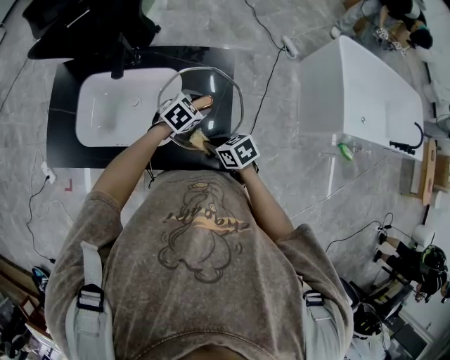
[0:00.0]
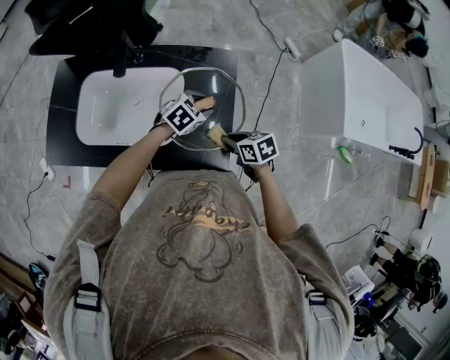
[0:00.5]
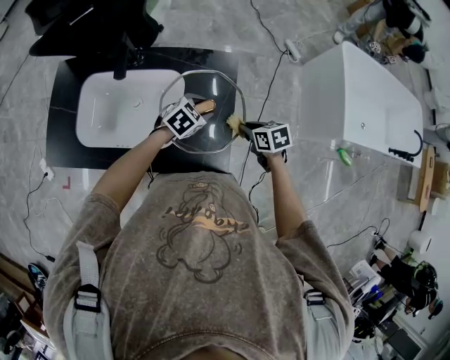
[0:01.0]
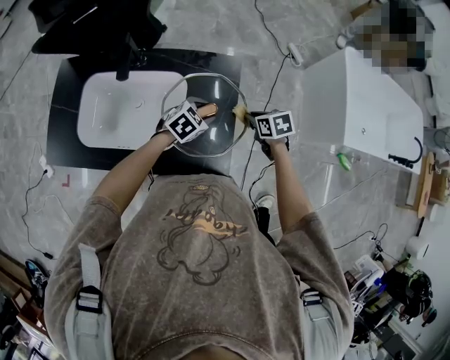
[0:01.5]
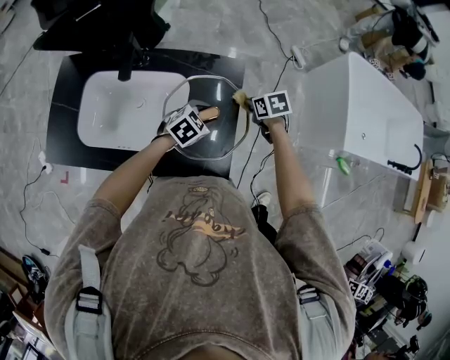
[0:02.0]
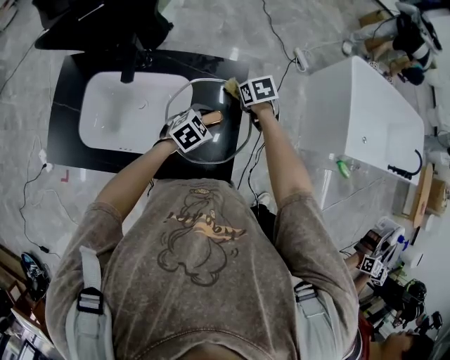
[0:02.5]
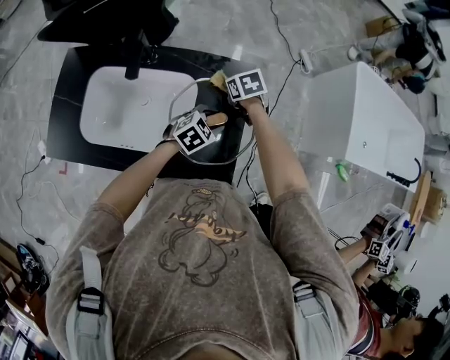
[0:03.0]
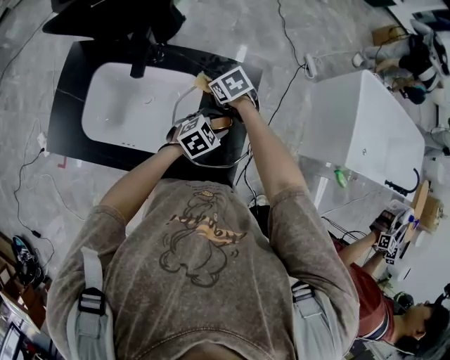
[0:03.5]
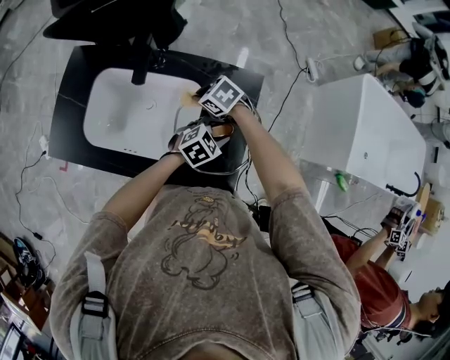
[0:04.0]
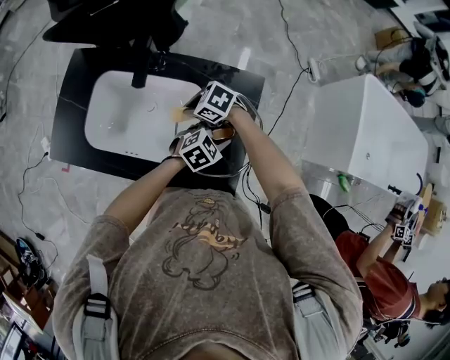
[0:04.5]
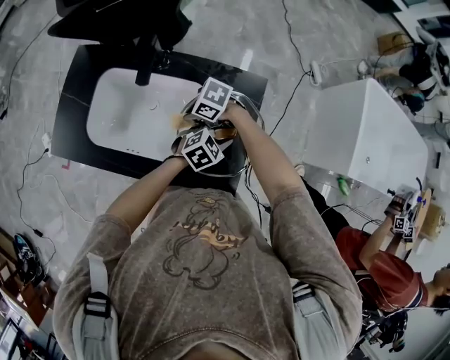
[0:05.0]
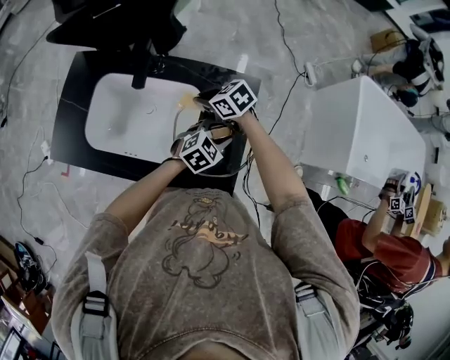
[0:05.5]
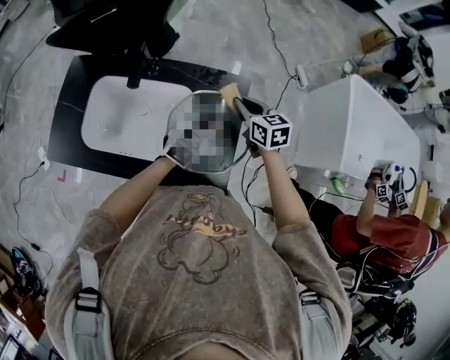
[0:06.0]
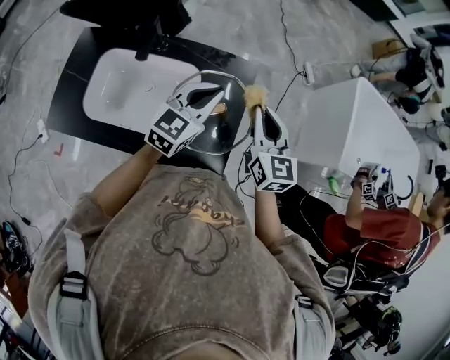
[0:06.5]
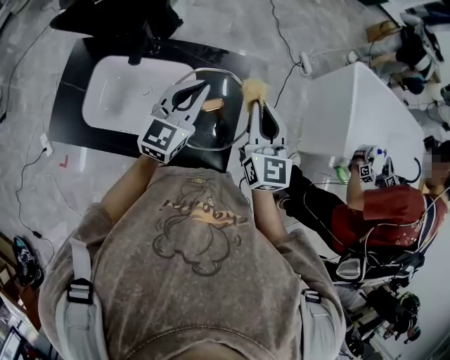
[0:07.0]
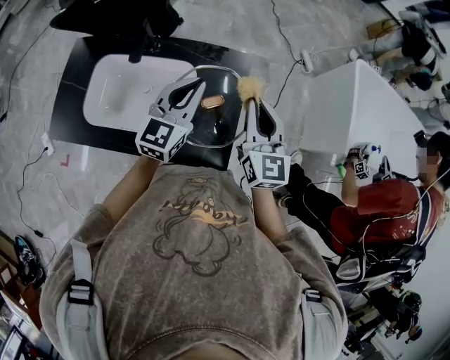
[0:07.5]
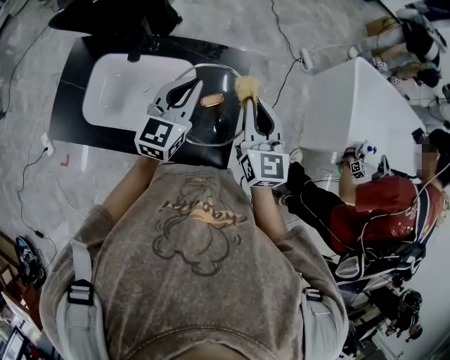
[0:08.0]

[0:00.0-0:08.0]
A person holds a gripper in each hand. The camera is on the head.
0:00.0 to 0:02.0: The right gripper ends up some 25 cm from where it was.
0:02.0 to 0:04.0: The right gripper changes place by roughly 25 cm, and turns by roughly 40 degrees.
0:04.0 to 0:06.0: The right gripper changes place by some 20 cm, and changes its angle by roughly 50 degrees. The left gripper heads upward, covering roughly 10 cm, rotates about 20 degrees, and closes its fingers.
0:06.0 to 0:08.0: The left gripper moves upward and to the left, about 15 cm, and changes its angle by approximately 30 degrees. Meanwhile the right gripper shifts roughly 20 cm backward and upward, and turns by some 40 degrees.

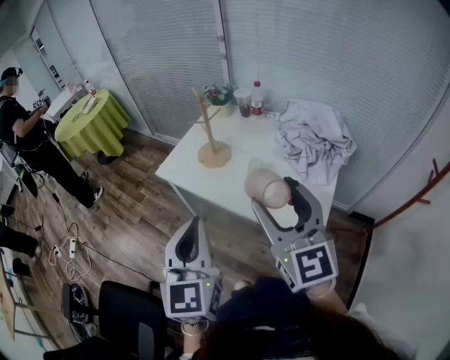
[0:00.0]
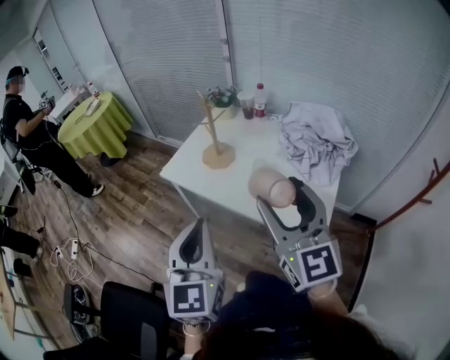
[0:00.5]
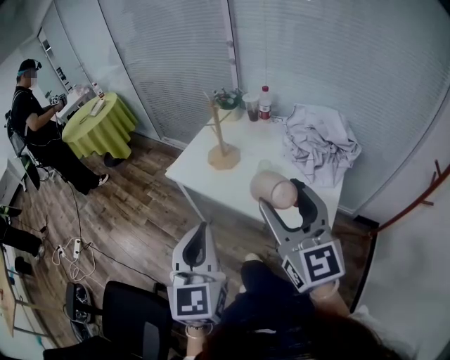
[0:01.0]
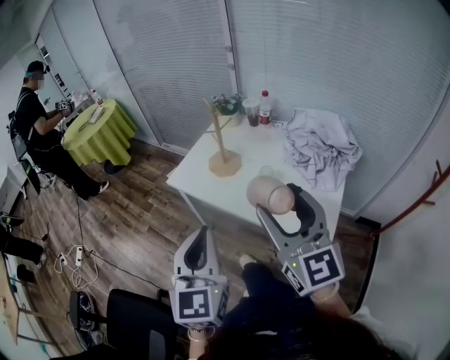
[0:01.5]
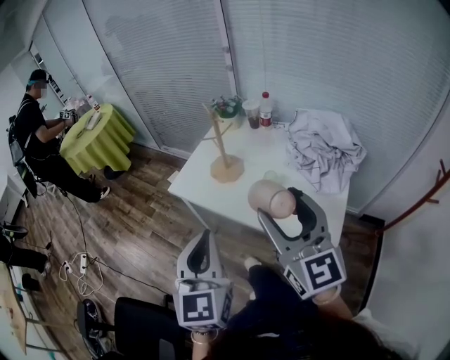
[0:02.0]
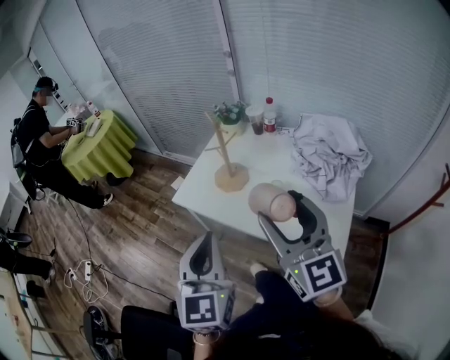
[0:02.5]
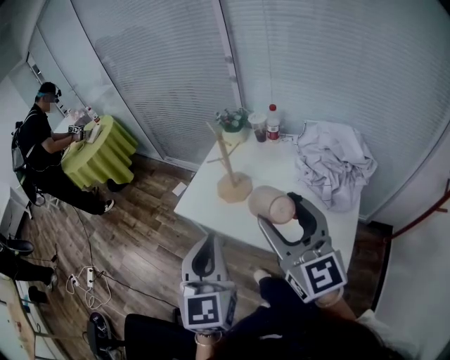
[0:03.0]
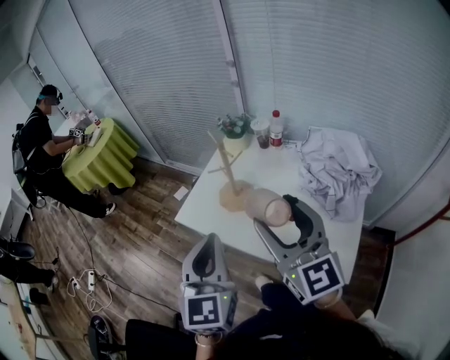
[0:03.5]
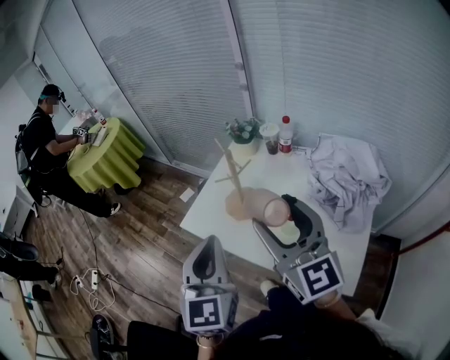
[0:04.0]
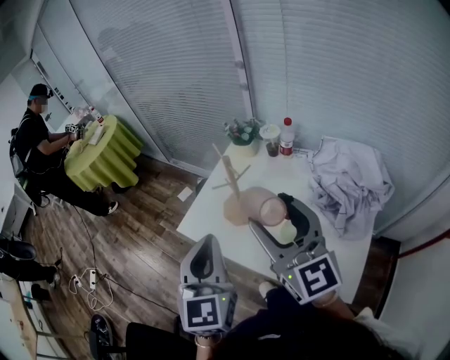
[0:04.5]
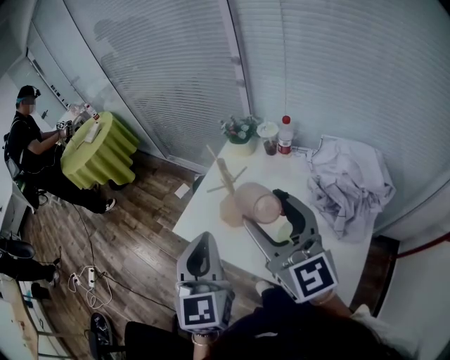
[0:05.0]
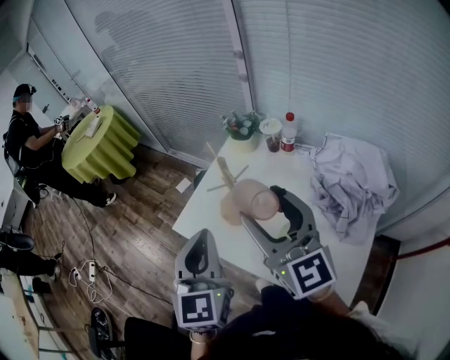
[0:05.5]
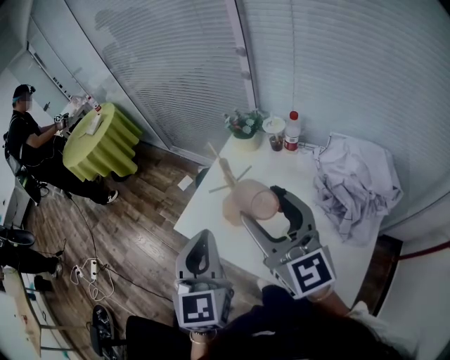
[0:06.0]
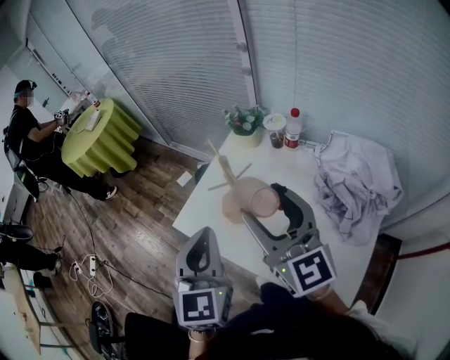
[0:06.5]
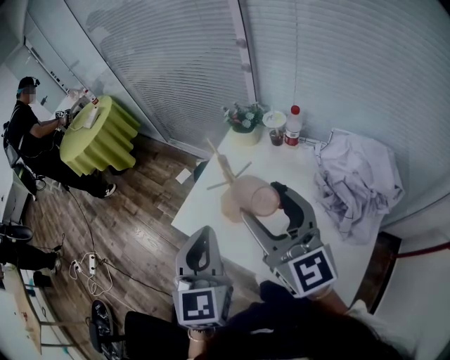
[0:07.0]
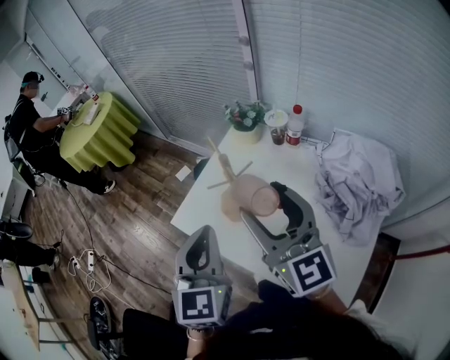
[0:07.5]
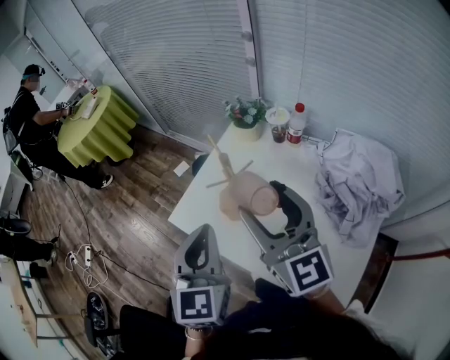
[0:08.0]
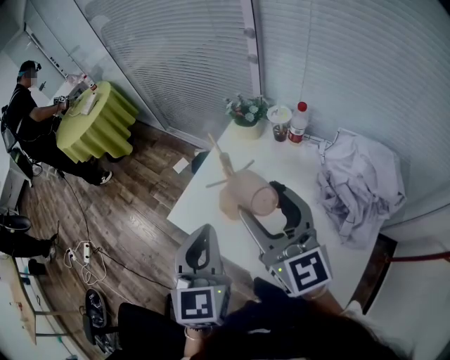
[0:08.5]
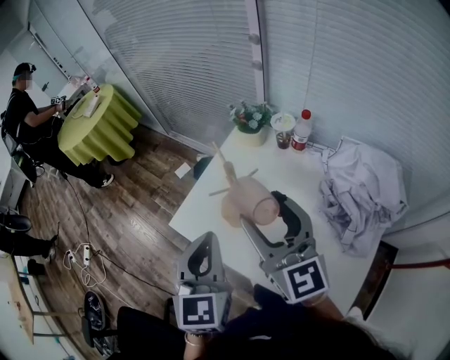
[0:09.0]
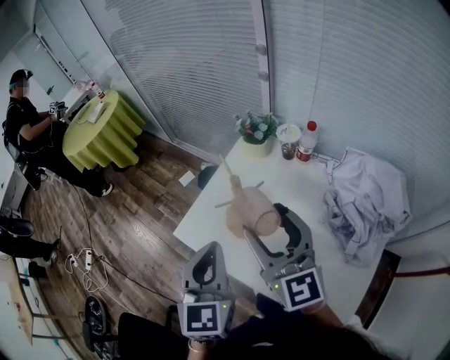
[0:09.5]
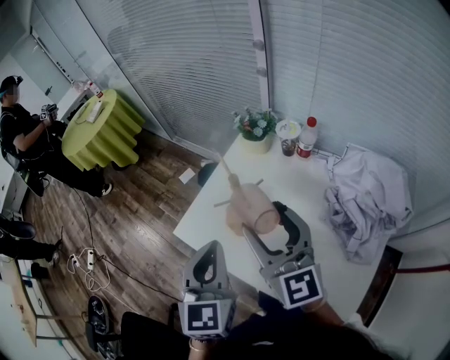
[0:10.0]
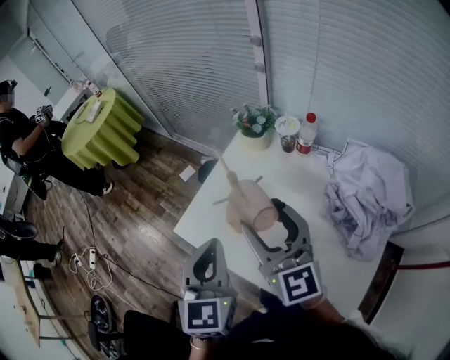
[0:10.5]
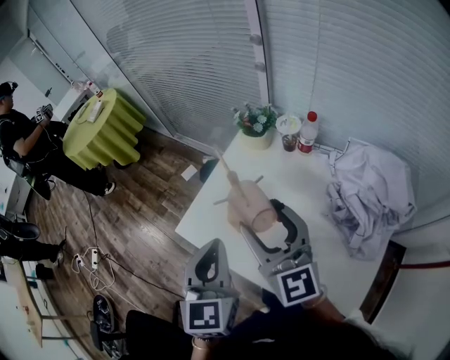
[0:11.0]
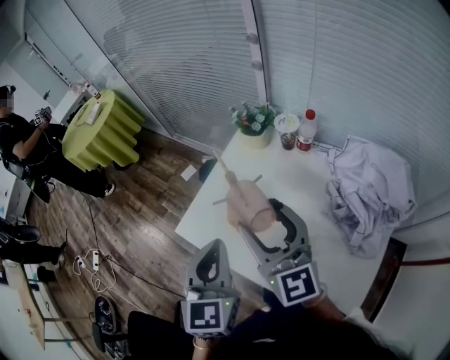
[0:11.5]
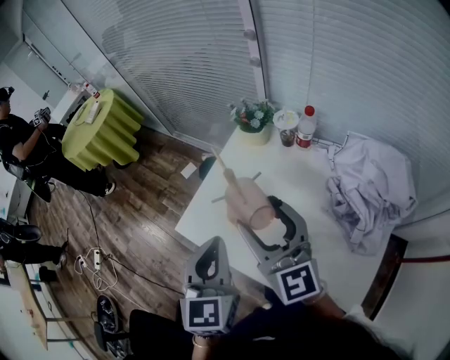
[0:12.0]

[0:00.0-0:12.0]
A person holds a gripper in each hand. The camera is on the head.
0:00.0 to 0:02.0: There are only small adjustments of the grippers.
0:02.0 to 0:04.0: Both grippers travel together forward, roughly 15 cm.
0:04.0 to 0:06.0: The two grippers go some 10 cm forward.
0:06.0 to 0:08.0: The grippers move only a little.
0:08.0 to 0:10.0: The grippers stay close to where they were, moving slightly.
0:10.0 to 0:12.0: Both grippers stay put.

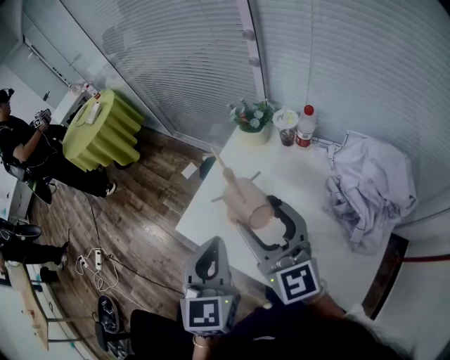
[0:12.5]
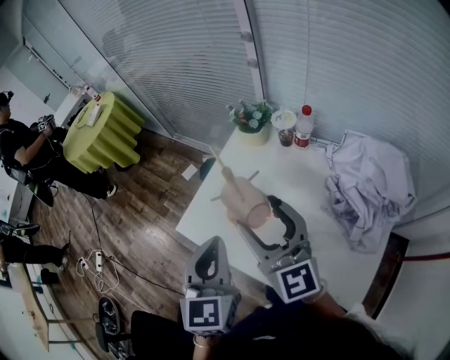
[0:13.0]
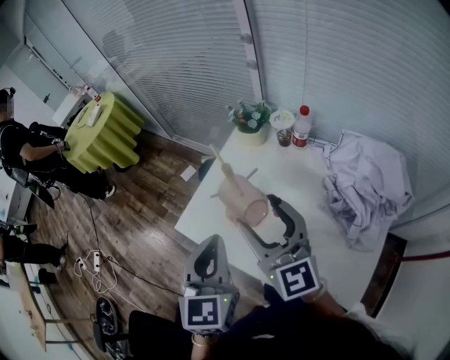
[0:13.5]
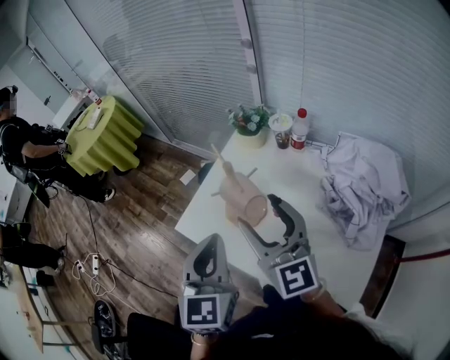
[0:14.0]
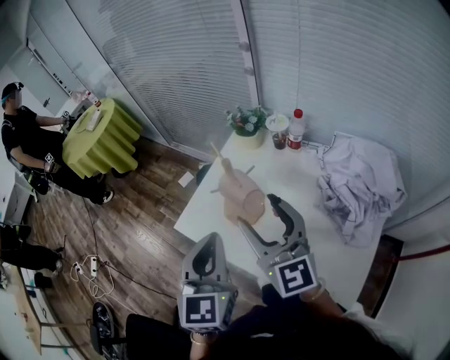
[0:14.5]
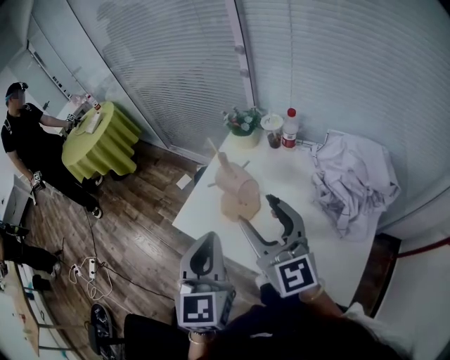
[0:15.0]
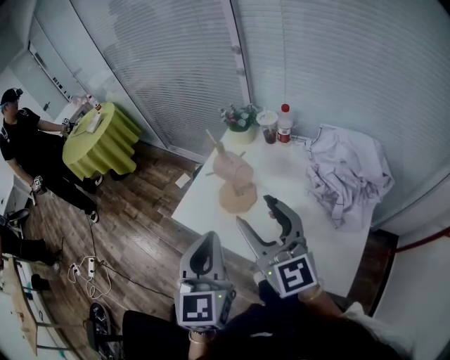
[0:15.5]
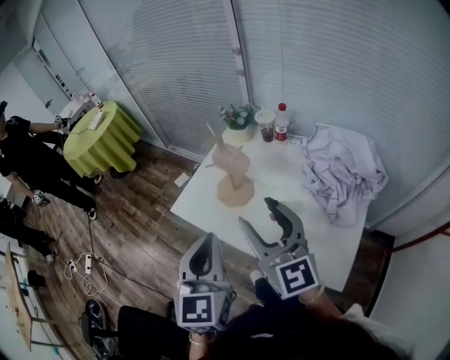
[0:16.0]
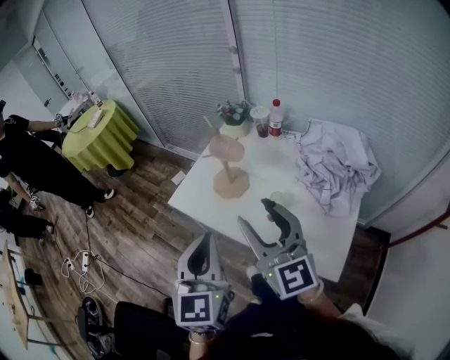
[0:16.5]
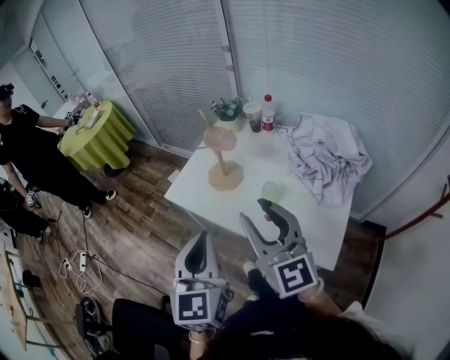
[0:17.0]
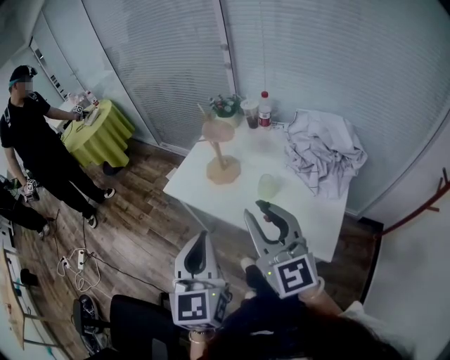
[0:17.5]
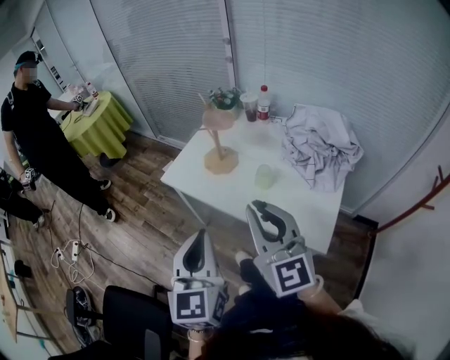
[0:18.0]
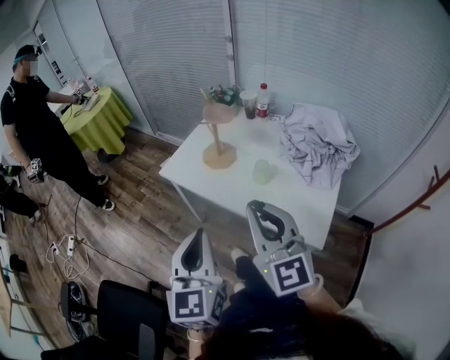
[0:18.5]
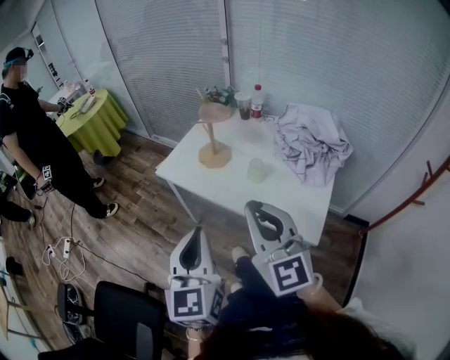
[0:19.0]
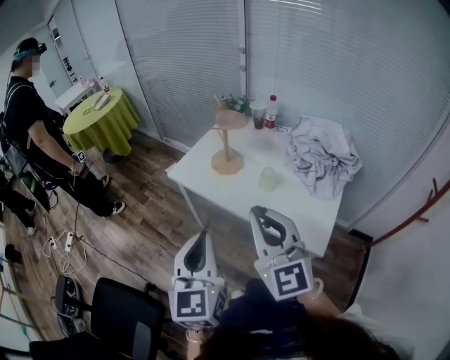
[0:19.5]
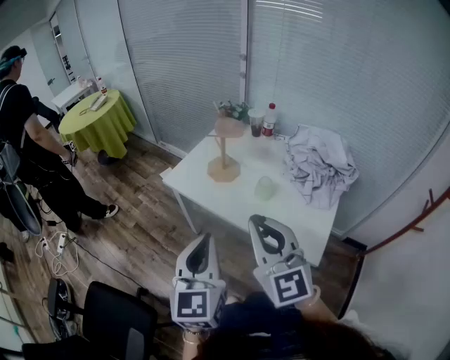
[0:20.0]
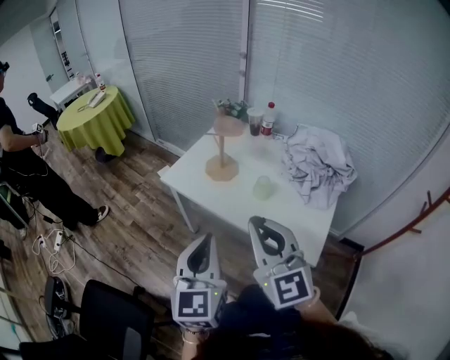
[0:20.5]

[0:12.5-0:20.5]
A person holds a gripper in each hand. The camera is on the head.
0:12.5 to 0:14.5: The grippers stay close to where they were, moving slightly.
0:14.5 to 0:16.5: Both grippers move backward, approximately 15 cm.
0:16.5 to 0:18.5: Both grippers move backward, roughly 15 cm. The right gripper closes.
0:18.5 to 0:20.5: There are only small adjustments of the grippers.
